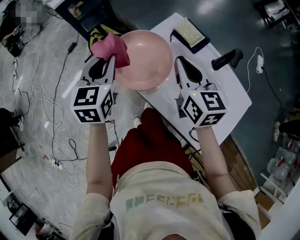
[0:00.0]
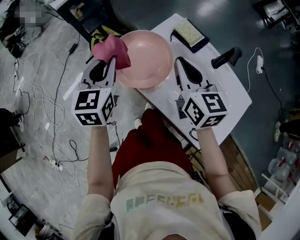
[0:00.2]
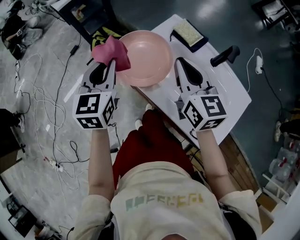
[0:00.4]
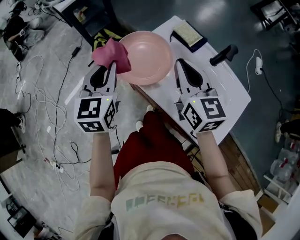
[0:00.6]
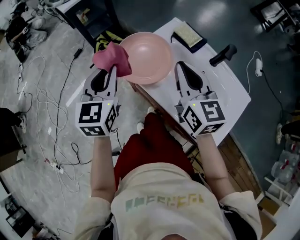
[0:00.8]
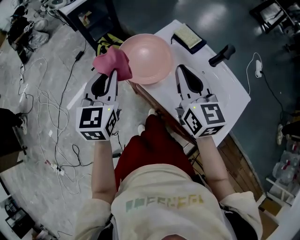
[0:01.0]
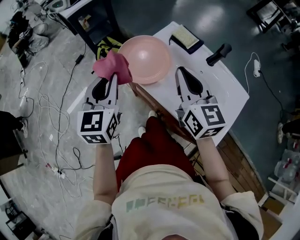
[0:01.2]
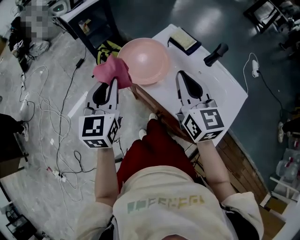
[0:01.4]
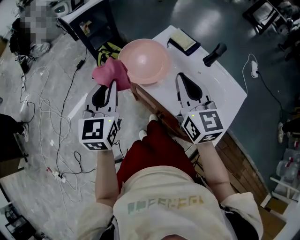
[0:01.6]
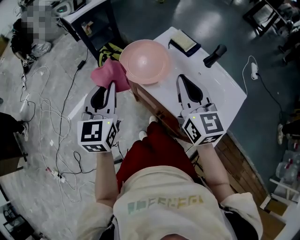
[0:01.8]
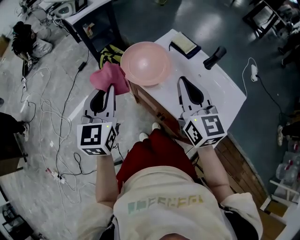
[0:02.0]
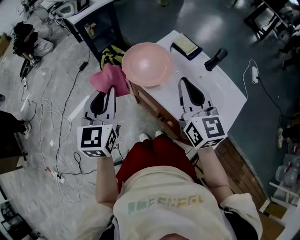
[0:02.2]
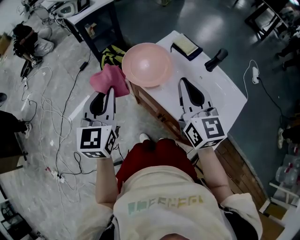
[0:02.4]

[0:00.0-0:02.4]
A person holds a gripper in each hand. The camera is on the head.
0:00.0 to 0:01.2: Both grippers travel together backward and upward, approximately 15 cm.
0:01.2 to 0:02.4: The two grippers go about 5 cm backward.

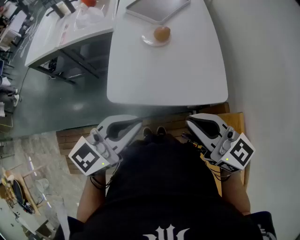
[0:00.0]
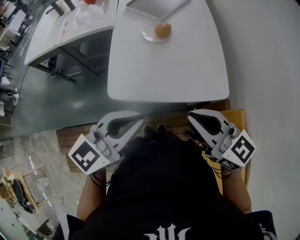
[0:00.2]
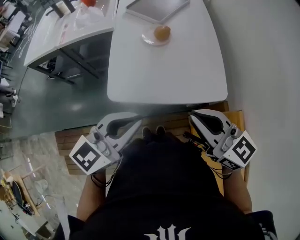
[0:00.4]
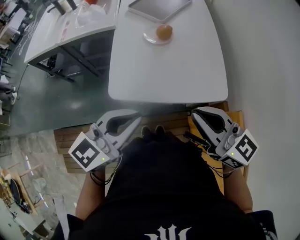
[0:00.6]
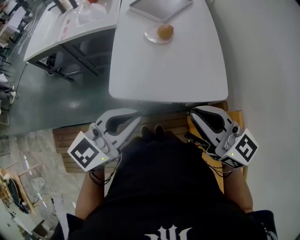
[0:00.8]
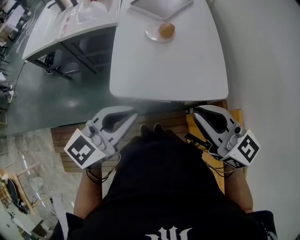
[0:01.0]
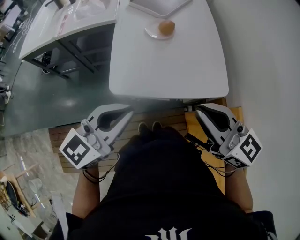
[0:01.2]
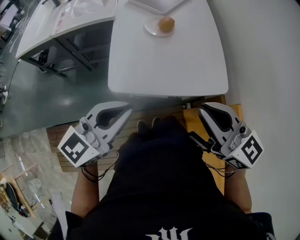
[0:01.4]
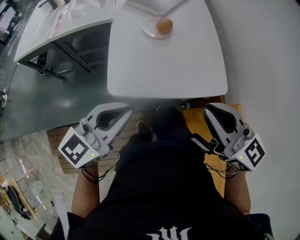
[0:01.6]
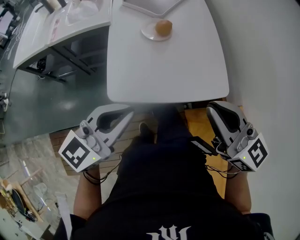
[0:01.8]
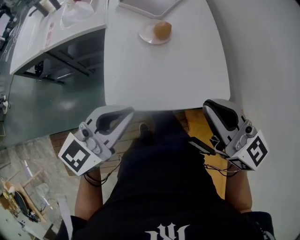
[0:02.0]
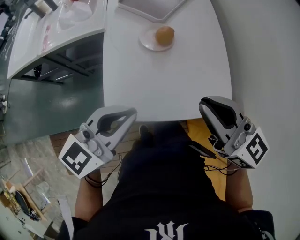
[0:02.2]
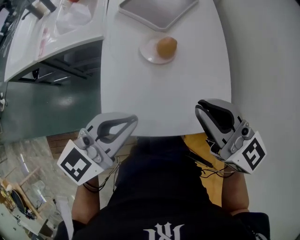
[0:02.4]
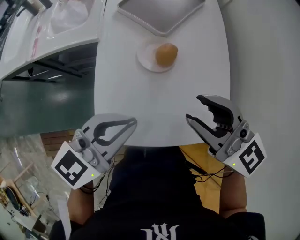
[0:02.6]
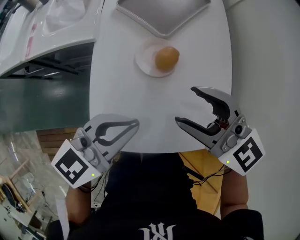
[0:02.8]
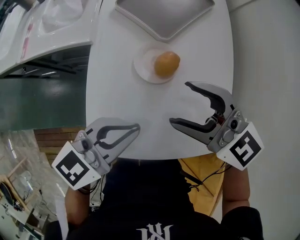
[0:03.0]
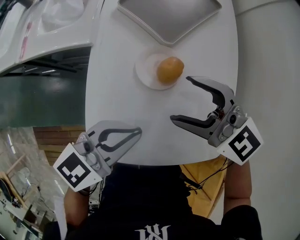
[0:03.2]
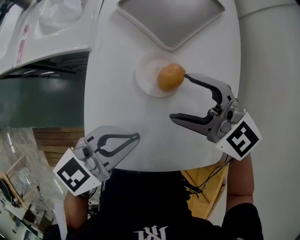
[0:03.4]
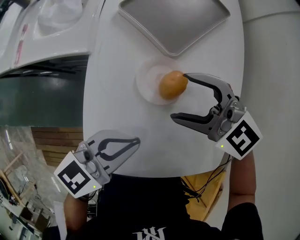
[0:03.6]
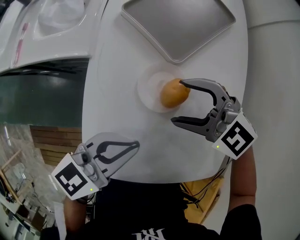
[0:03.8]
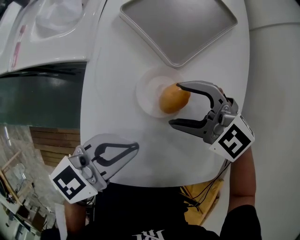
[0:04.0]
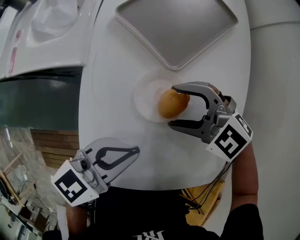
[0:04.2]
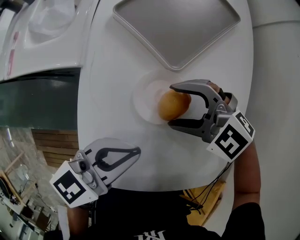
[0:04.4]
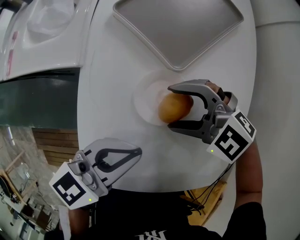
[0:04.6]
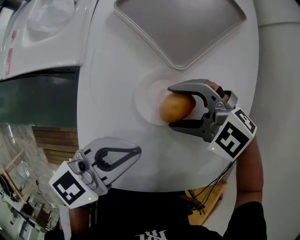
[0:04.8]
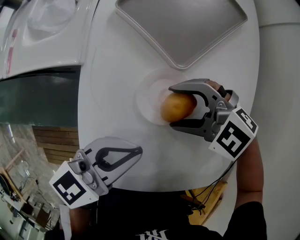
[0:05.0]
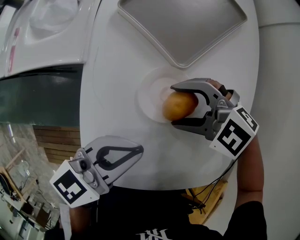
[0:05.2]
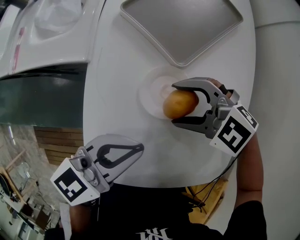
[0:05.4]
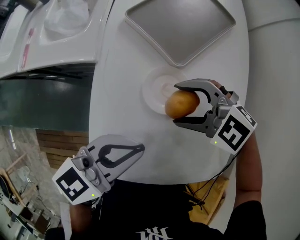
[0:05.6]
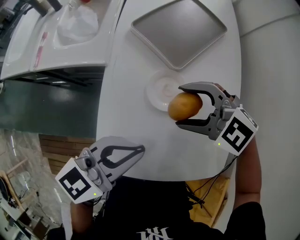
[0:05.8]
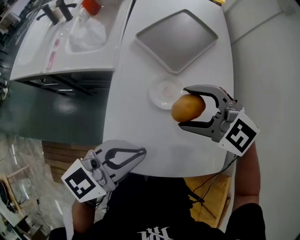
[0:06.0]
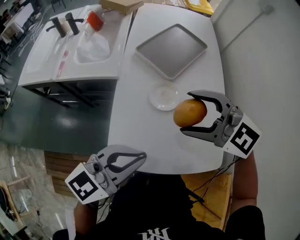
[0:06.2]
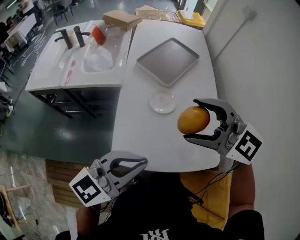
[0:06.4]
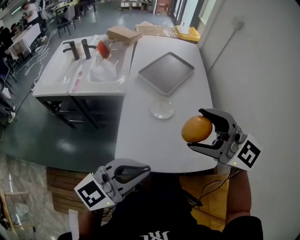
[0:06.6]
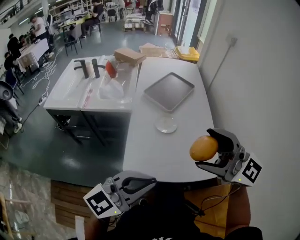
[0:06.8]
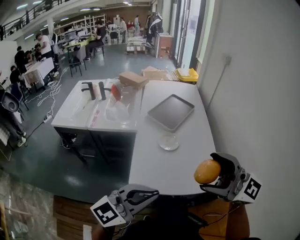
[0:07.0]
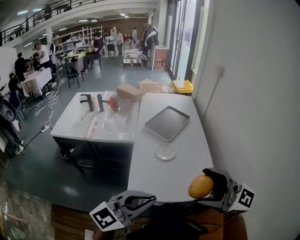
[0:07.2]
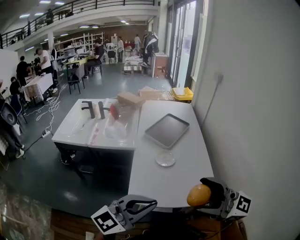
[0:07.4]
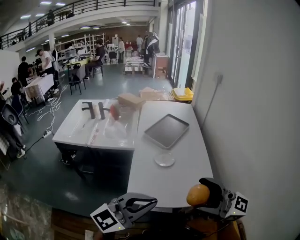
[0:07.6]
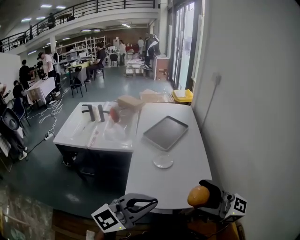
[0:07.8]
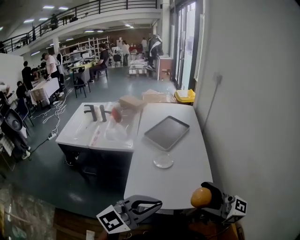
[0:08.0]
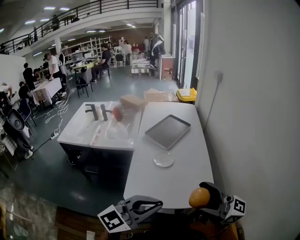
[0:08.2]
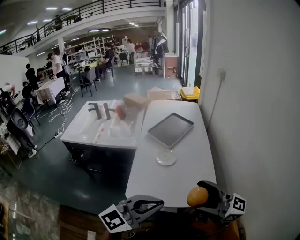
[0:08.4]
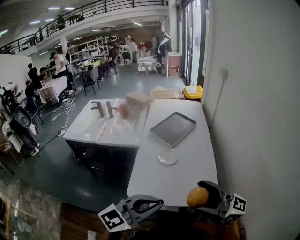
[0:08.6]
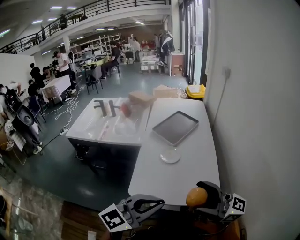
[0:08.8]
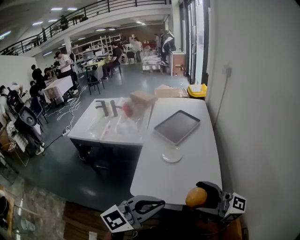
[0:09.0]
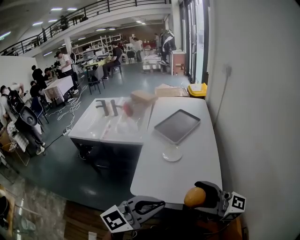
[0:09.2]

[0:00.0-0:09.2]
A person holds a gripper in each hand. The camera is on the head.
0:00.0 to 0:01.6: The left gripper is displaced to the left by roughly 5 cm.
0:01.6 to 0:03.0: The left gripper changes place by roughly 25 cm, while the right gripper moves roughly 30 cm, rotates about 30 degrees, and opens up.
0:03.0 to 0:04.6: The left gripper changes place by some 10 cm; the right gripper travels downward by roughly 15 cm, and changes its angle by some 30 degrees.
0:04.6 to 0:06.2: The left gripper shifts by about 20 cm. The right gripper heads upward, covering approximately 20 cm, and rotates approximately 20 degrees.
0:06.2 to 0:07.6: The left gripper ends up approximately 25 cm from where it was, and rotates roughly 20 degrees. Meanwhile the right gripper ends up approximately 35 cm from where it was, and angles its fingers upward, by about 50 degrees.
0:07.6 to 0:09.2: The left gripper ends up approximately 10 cm from where it was. The right gripper moves downward, some 5 cm.

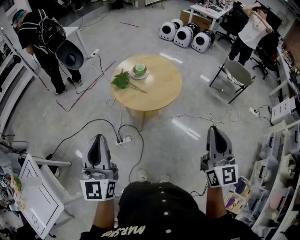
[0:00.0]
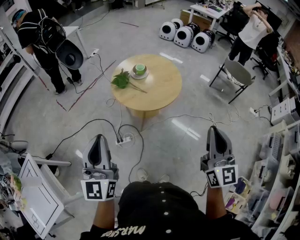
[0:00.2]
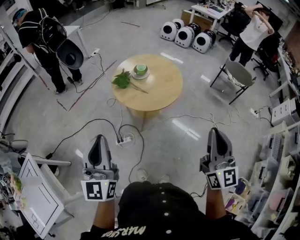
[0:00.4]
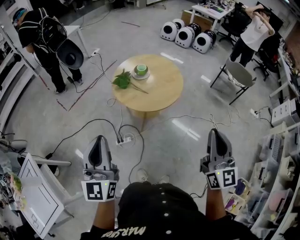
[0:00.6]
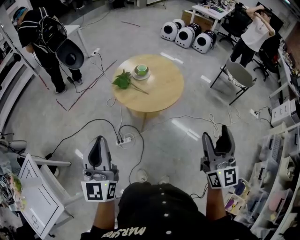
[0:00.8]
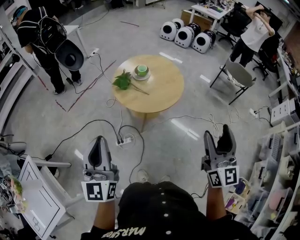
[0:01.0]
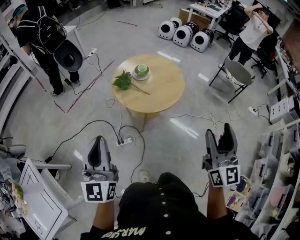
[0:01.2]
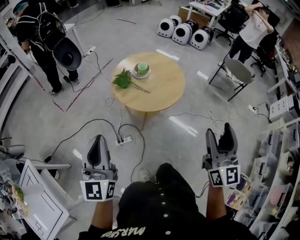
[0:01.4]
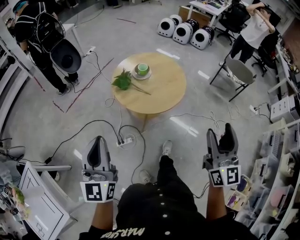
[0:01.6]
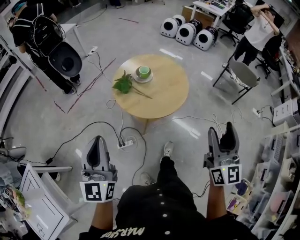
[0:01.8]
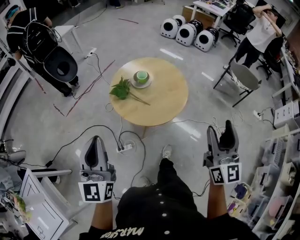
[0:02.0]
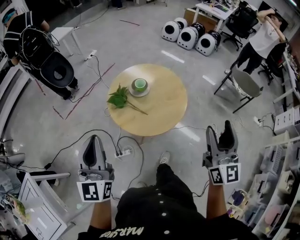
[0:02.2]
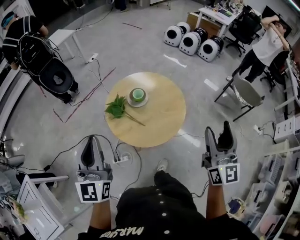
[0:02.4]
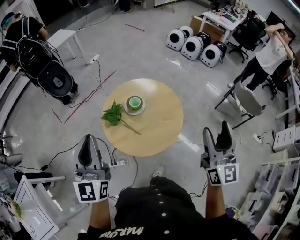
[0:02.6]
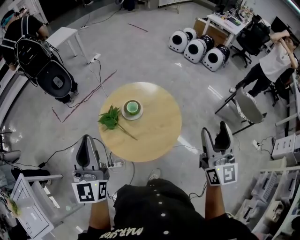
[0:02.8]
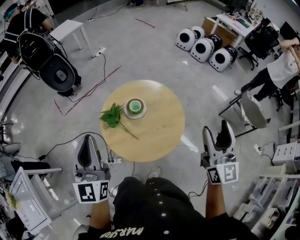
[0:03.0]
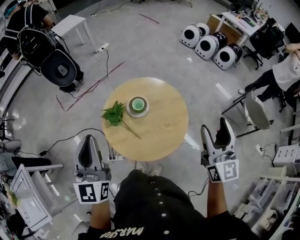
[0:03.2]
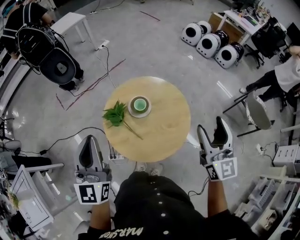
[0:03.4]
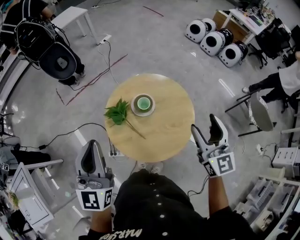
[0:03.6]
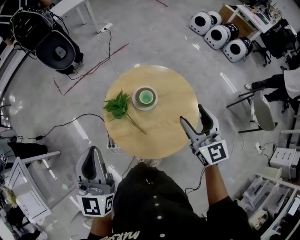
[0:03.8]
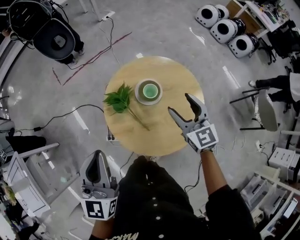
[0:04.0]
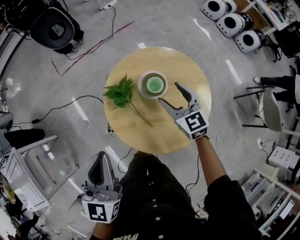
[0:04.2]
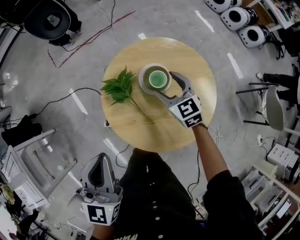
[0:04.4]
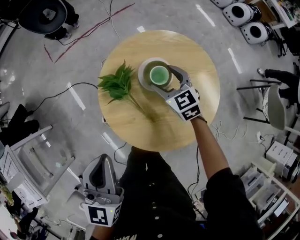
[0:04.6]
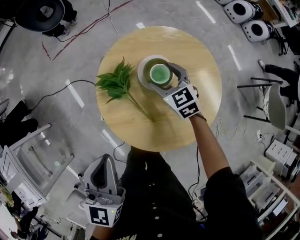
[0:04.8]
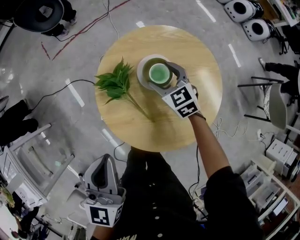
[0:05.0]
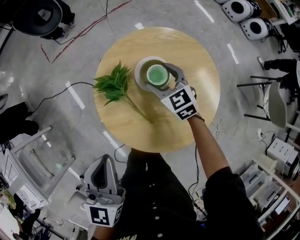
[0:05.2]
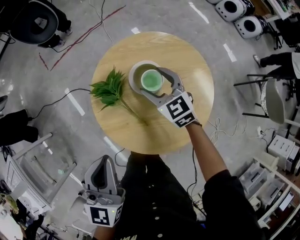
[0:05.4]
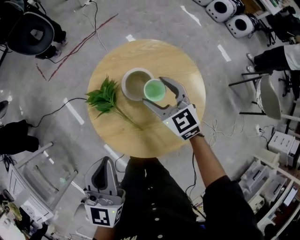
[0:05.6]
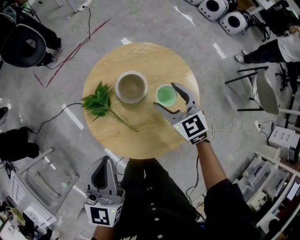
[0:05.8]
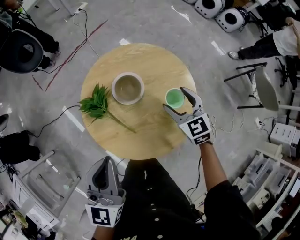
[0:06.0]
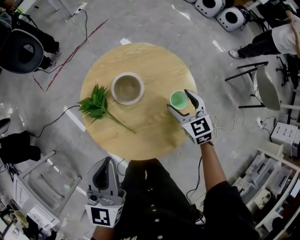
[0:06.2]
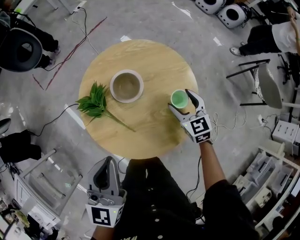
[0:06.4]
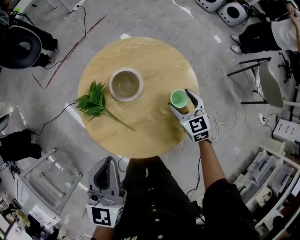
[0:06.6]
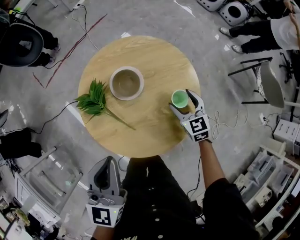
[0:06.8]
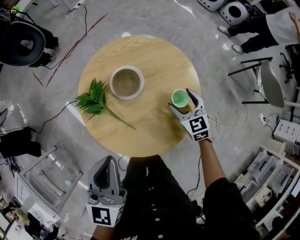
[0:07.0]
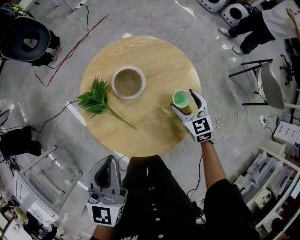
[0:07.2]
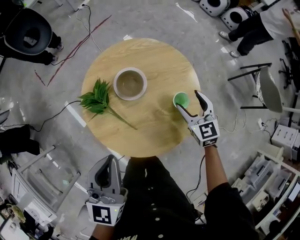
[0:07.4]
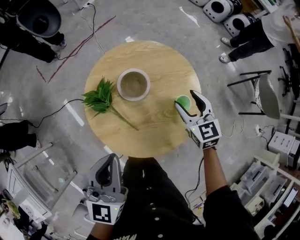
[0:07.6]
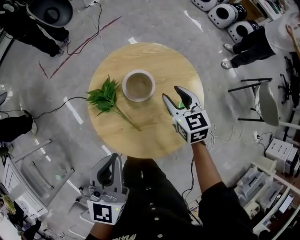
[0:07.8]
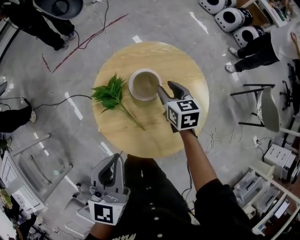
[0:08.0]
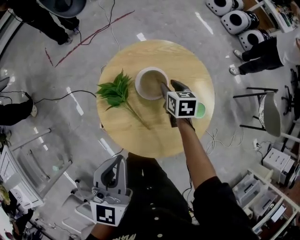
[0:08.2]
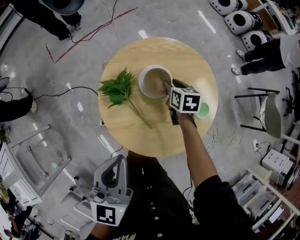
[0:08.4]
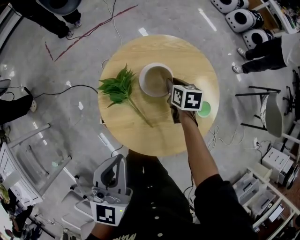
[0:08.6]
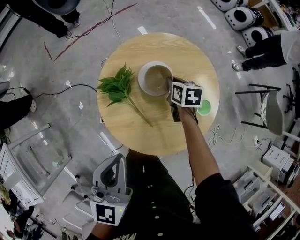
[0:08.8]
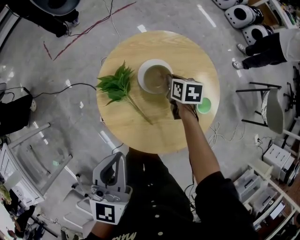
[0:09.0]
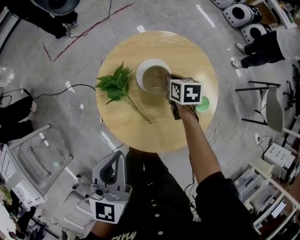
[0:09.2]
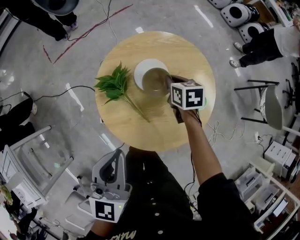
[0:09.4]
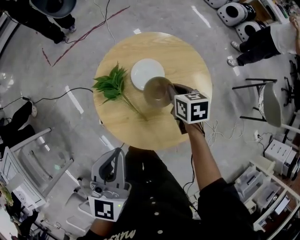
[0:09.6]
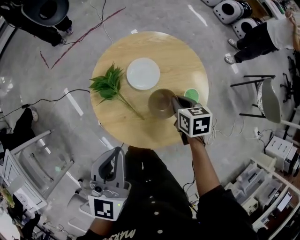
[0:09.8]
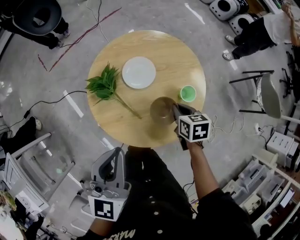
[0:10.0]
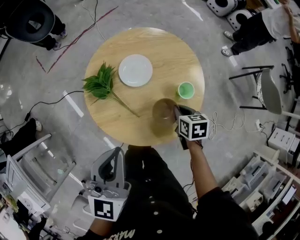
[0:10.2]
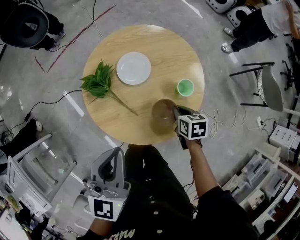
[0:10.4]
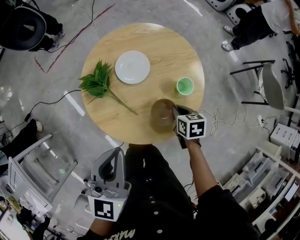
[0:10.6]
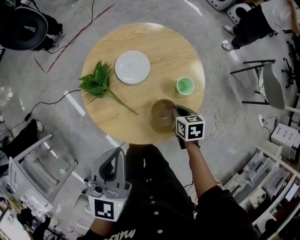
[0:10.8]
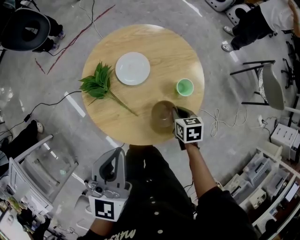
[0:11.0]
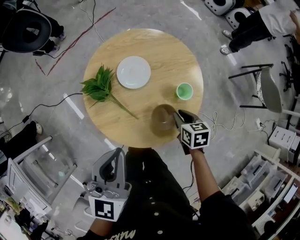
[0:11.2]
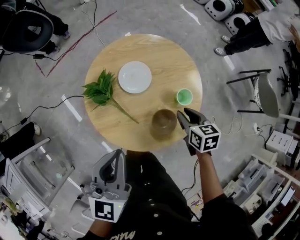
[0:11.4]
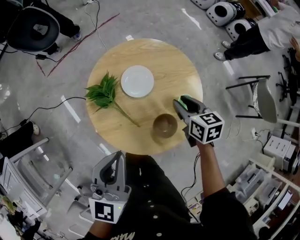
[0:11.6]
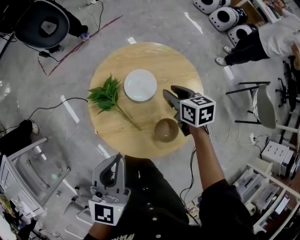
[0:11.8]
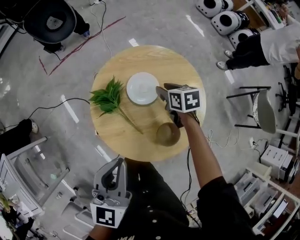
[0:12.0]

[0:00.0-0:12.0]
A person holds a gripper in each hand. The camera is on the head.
0:00.0 to 0:01.6: The left gripper heads forward and to the left, covering about 10 cm. The right gripper moves forward, about 5 cm, and opens its fingers.
0:01.6 to 0:03.0: The left gripper goes approximately 35 cm forward and to the right, while the right gripper is displaced forward by about 40 cm.
0:03.0 to 0:04.4: The right gripper is displaced downward, forward and to the left by some 50 cm, and tilts its fingers about 40 degrees downward; the left gripper heads downward, covering approximately 15 cm, and changes its angle by some 20 degrees.
0:04.4 to 0:06.0: The left gripper goes approximately 10 cm to the right. Meanwhile the right gripper is displaced to the right and backward by about 15 cm.
0:06.0 to 0:07.6: The right gripper reaches approximately 10 cm downward, then returns.
0:07.6 to 0:09.0: The left gripper travels to the left by some 5 cm, while the right gripper goes approximately 20 cm downward, to the left and forward, rotates roughly 40 degrees, and closes.
0:09.0 to 0:10.4: The left gripper moves to the right, approximately 5 cm. The right gripper shifts some 20 cm backward and to the right.
0:10.4 to 0:12.0: The right gripper is displaced forward and to the left by some 20 cm, and opens up.
